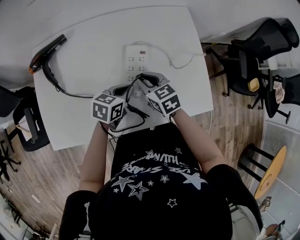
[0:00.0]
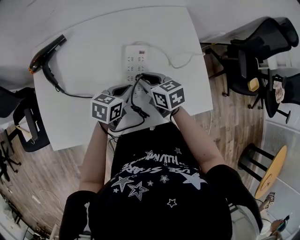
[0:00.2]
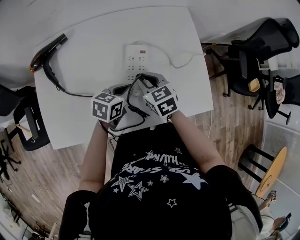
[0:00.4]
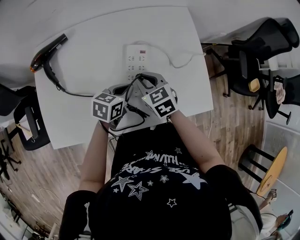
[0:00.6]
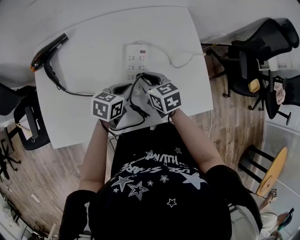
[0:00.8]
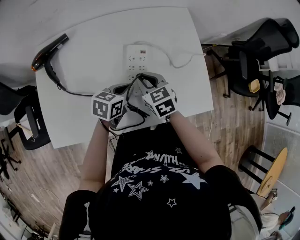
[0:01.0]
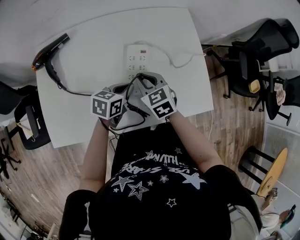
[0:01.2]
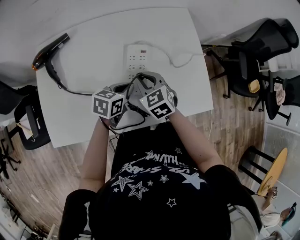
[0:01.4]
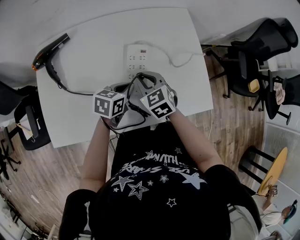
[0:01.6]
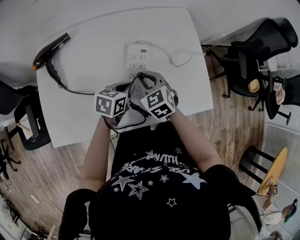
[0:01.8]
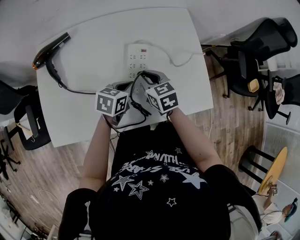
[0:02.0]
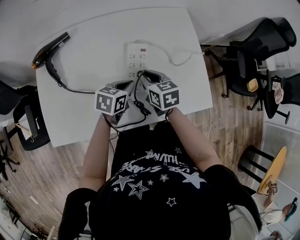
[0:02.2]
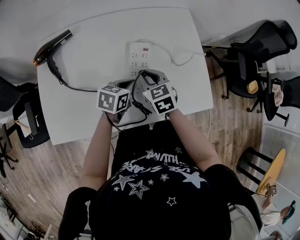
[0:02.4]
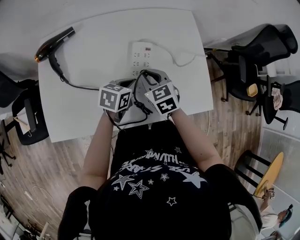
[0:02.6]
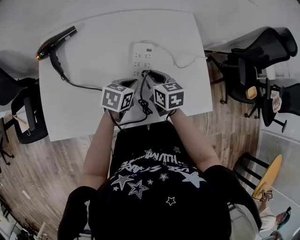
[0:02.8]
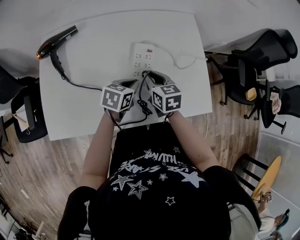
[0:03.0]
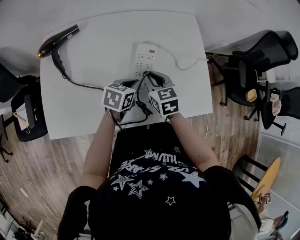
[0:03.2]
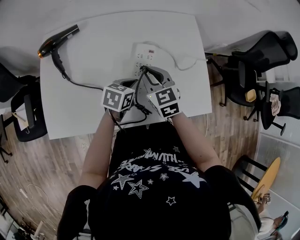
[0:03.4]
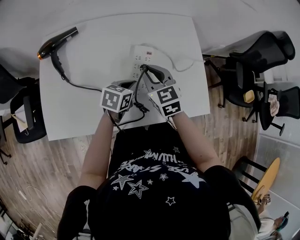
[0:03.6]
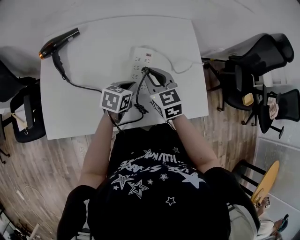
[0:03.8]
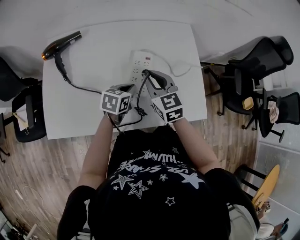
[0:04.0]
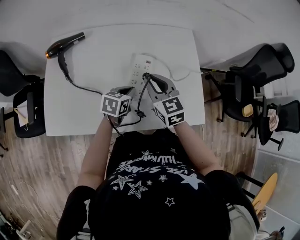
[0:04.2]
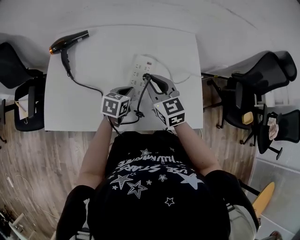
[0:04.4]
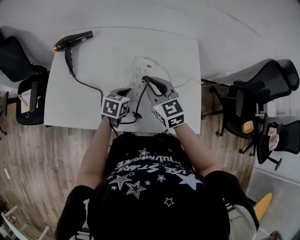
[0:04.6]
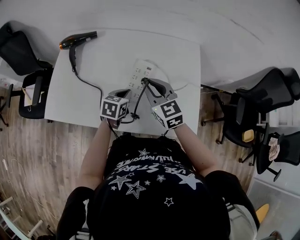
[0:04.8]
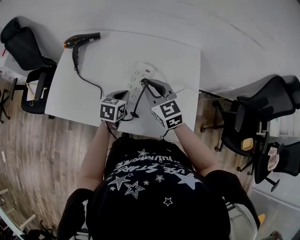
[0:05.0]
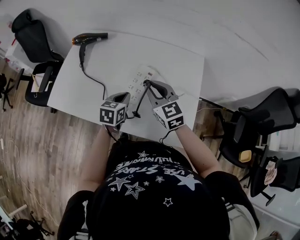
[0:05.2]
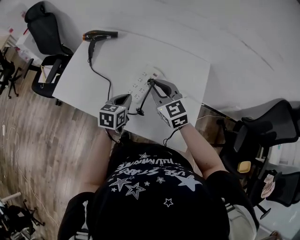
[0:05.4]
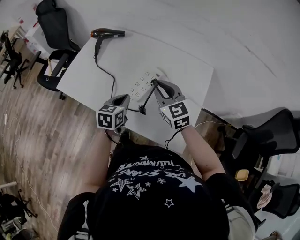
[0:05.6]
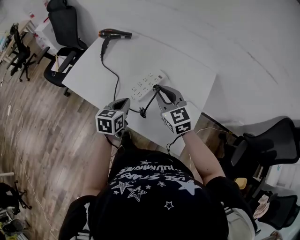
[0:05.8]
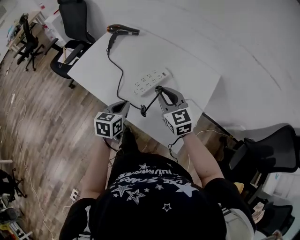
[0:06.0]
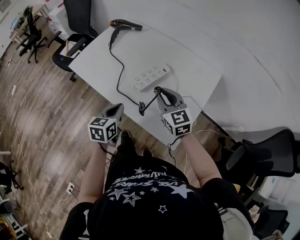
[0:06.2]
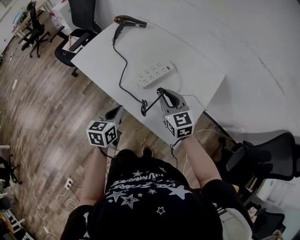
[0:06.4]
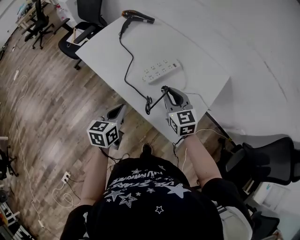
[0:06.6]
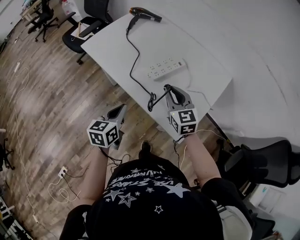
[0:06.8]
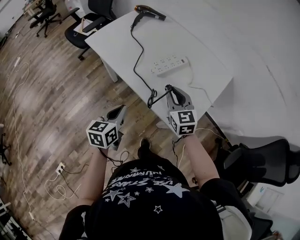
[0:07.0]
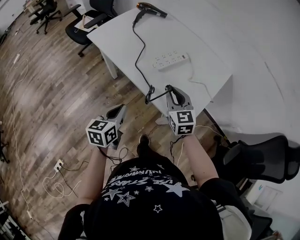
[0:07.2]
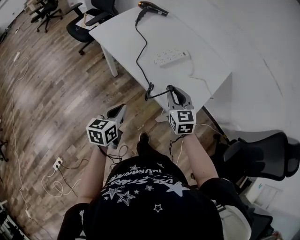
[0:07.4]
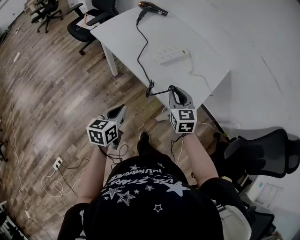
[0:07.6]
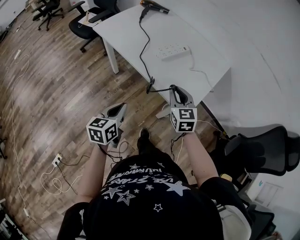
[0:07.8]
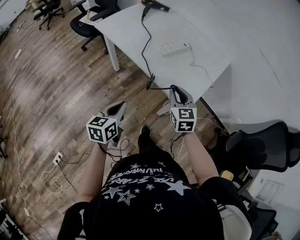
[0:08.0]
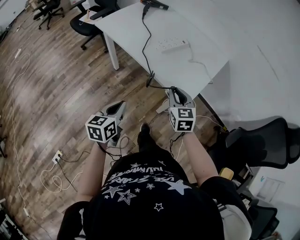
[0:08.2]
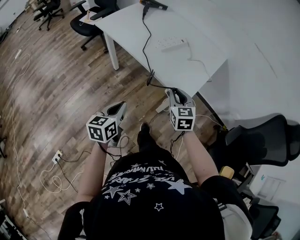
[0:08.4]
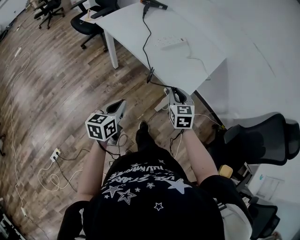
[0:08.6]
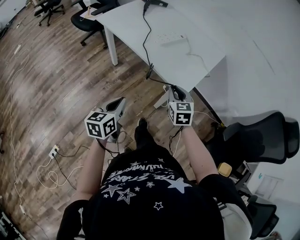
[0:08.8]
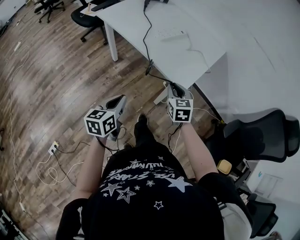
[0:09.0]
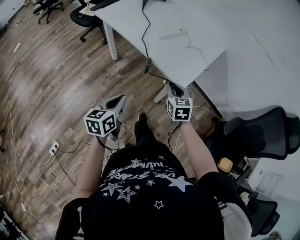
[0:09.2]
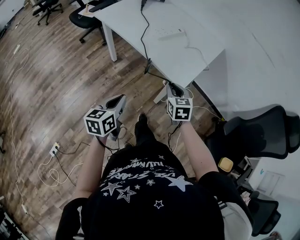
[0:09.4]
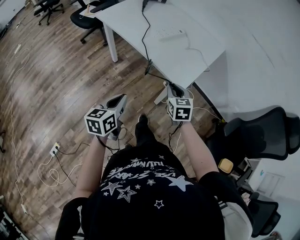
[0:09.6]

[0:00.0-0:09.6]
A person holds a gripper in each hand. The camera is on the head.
0:00.0 to 0:01.6: The grippers make only small movements.
0:03.2 to 0:04.8: The right gripper moves upward, roughly 10 cm, and rotates some 30 degrees; the left gripper rotates approximately 20 degrees.
0:04.8 to 0:06.4: The left gripper changes place by some 20 cm, and swivels roughly 40 degrees. The right gripper changes place by about 10 cm, and turns by some 20 degrees.
0:06.4 to 0:08.0: The two grippers go roughly 20 cm backward.
0:08.0 to 0:09.6: The right gripper moves backward and downward, roughly 10 cm, while the left gripper goes some 10 cm backward.

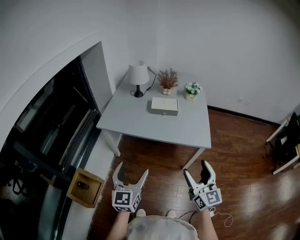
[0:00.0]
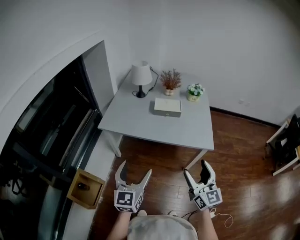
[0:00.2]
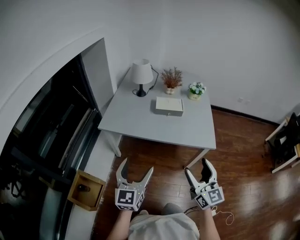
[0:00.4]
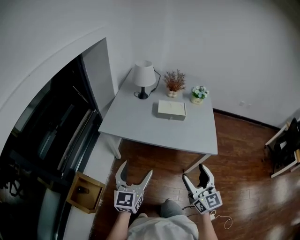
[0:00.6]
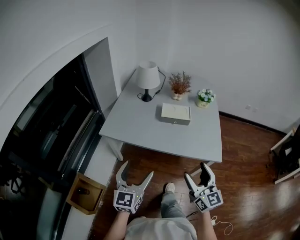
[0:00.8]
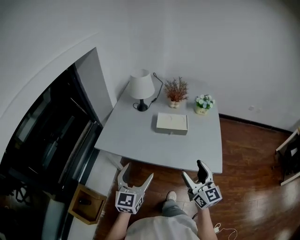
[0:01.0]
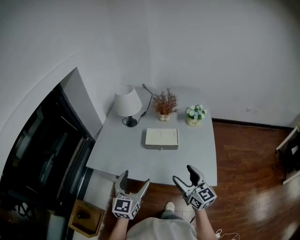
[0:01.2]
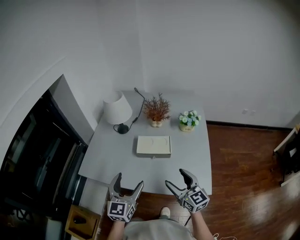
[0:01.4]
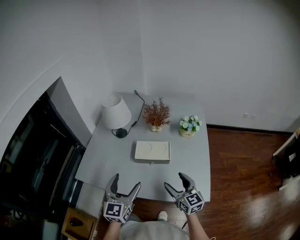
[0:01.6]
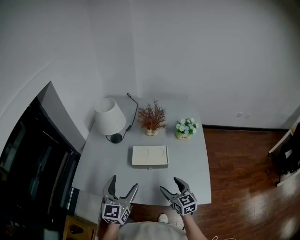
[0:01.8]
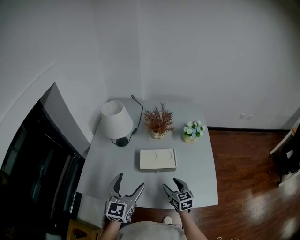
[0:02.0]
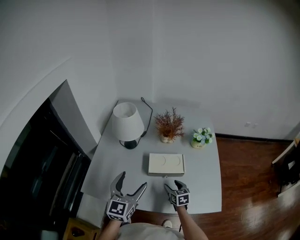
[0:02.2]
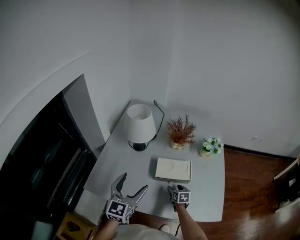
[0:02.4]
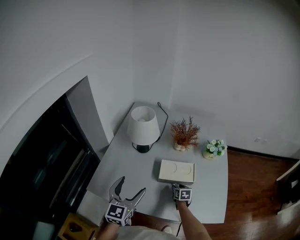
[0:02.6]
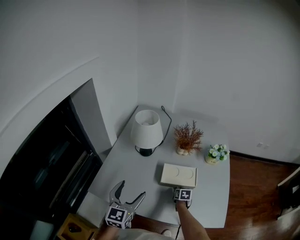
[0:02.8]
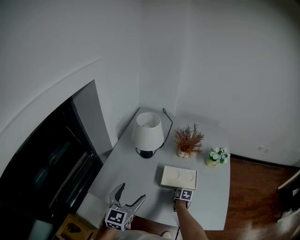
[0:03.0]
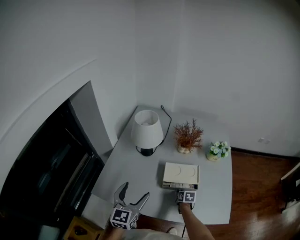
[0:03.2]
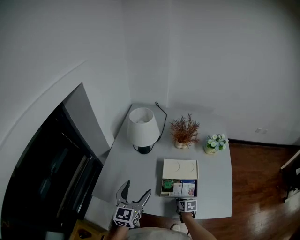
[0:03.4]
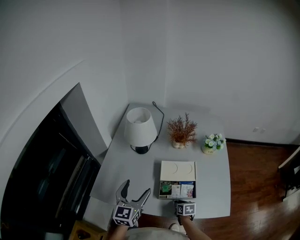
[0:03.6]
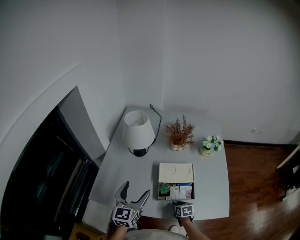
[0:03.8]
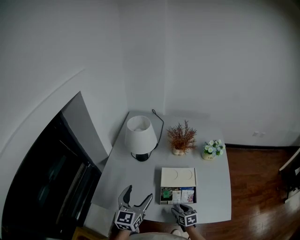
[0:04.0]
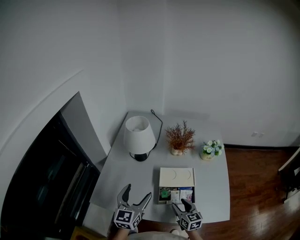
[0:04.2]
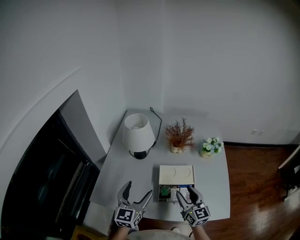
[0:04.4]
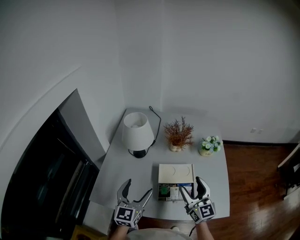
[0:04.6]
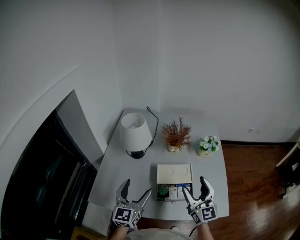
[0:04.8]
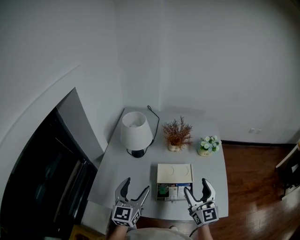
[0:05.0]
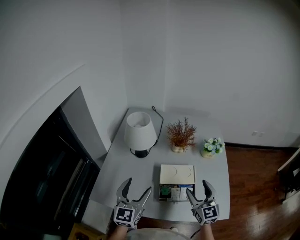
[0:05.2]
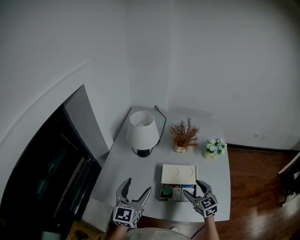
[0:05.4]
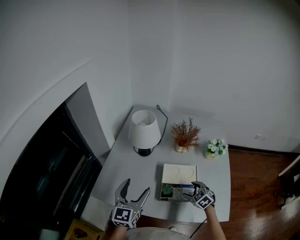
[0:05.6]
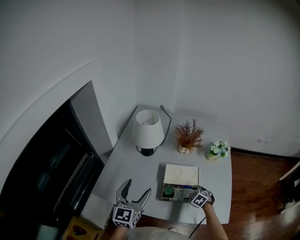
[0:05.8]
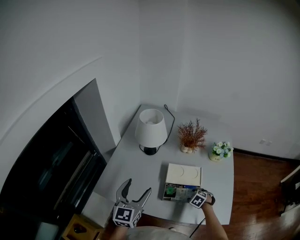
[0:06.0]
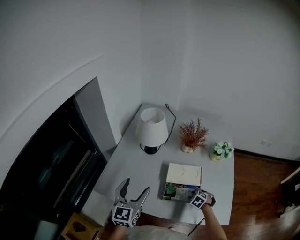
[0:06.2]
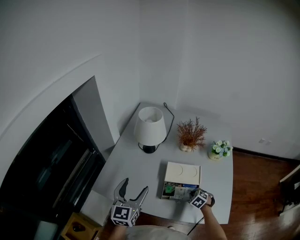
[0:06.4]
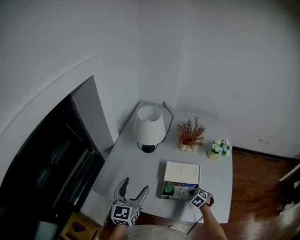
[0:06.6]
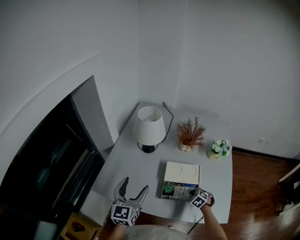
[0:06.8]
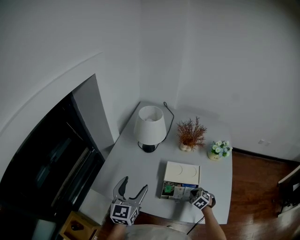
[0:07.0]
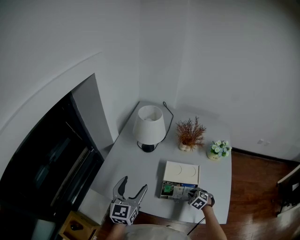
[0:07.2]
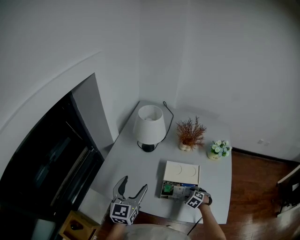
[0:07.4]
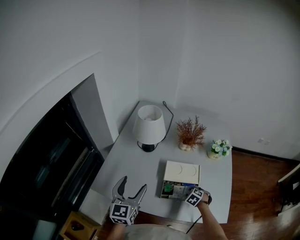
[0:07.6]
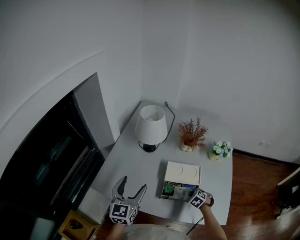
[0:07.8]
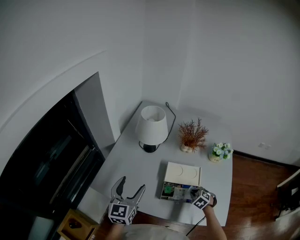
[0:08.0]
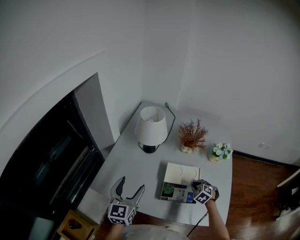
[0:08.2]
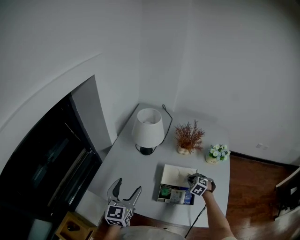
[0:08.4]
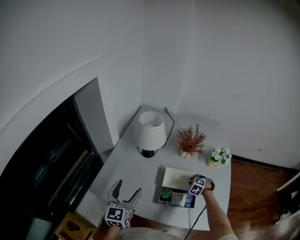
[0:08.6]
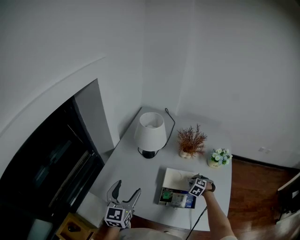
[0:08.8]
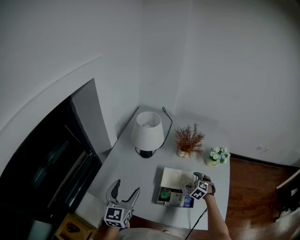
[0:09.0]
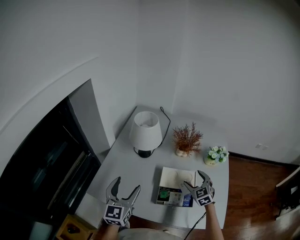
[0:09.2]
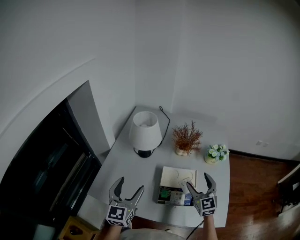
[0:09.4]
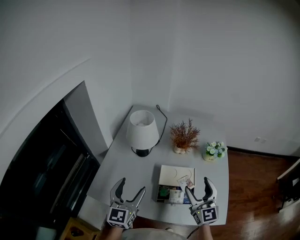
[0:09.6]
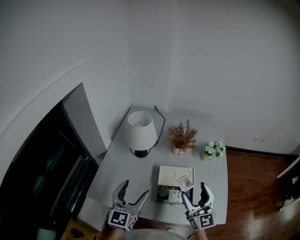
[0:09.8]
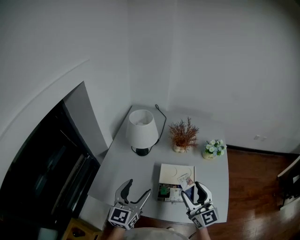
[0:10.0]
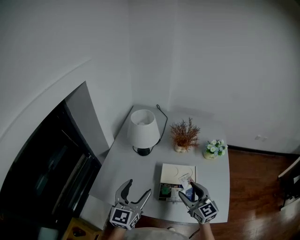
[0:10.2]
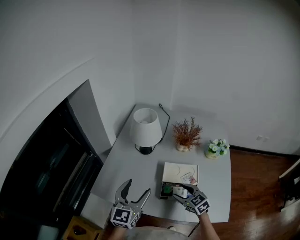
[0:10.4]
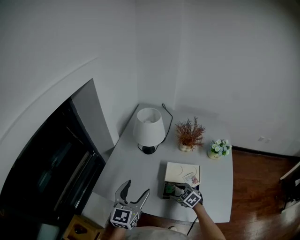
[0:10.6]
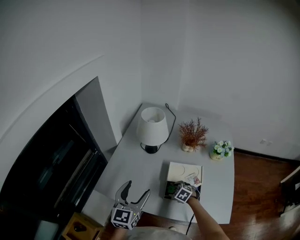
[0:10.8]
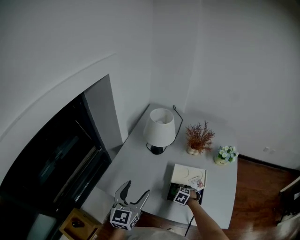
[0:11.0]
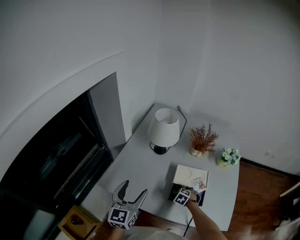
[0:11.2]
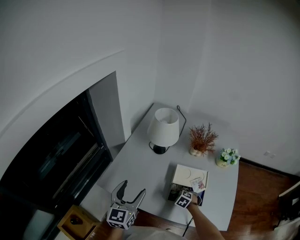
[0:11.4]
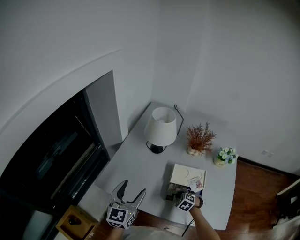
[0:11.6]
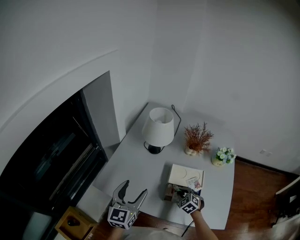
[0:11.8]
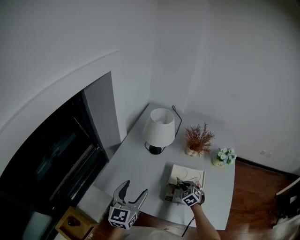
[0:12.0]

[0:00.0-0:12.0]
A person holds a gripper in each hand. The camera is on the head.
0:00.0 to 0:01.6: Both grippers travel together forward, some 35 cm.
0:01.6 to 0:03.0: The left gripper goes approximately 15 cm to the left and forward, while the right gripper is displaced downward and forward by some 30 cm, tilts its fingers approximately 50 degrees downward, and closes up.
0:03.0 to 0:04.4: The right gripper heads upward, covering some 30 cm, tips its fingers upward by roughly 50 degrees, and opens.
0:04.4 to 0:06.0: The right gripper moves downward, some 25 cm, and angles its fingers downward, by about 70 degrees.
0:06.0 to 0:07.6: The right gripper closes, then reopens.
0:07.6 to 0:09.0: The right gripper moves forward and upward, some 15 cm, and opens.
0:09.0 to 0:10.4: The right gripper shifts about 15 cm backward and to the left, reaches roughly 25 cm upward, then returns, and turns by some 40 degrees, while the left gripper changes place by about 5 cm.
0:10.4 to 0:12.0: The right gripper shifts approximately 10 cm downward and forward, swivels some 30 degrees, and closes up. Meanwhile the left gripper goes about 5 cm to the left.

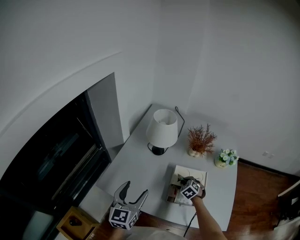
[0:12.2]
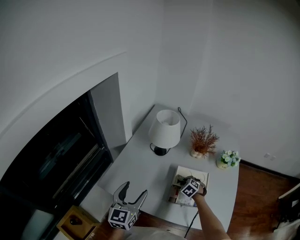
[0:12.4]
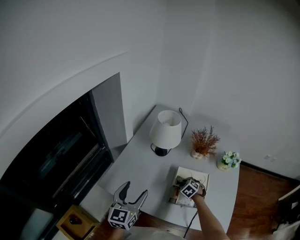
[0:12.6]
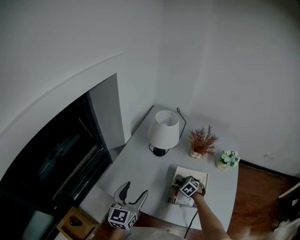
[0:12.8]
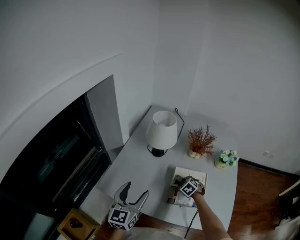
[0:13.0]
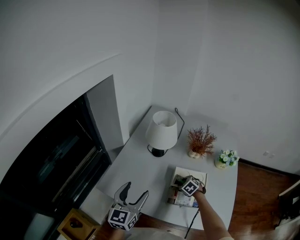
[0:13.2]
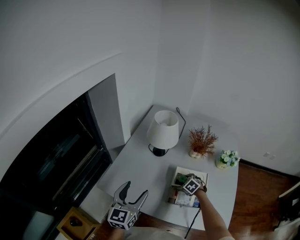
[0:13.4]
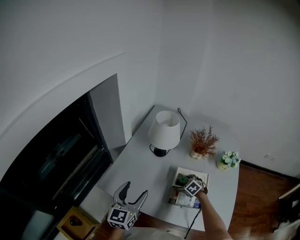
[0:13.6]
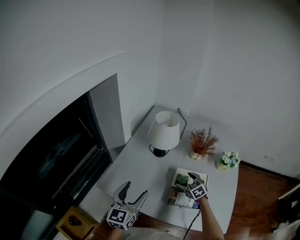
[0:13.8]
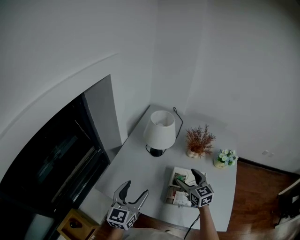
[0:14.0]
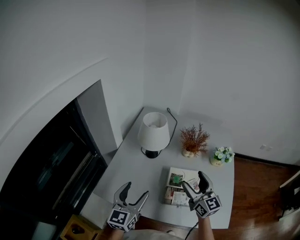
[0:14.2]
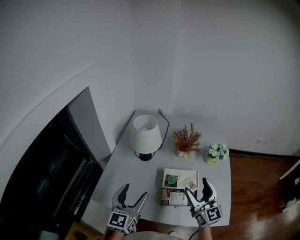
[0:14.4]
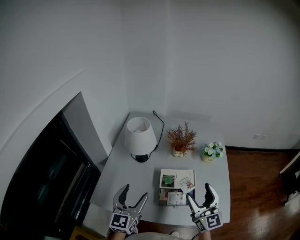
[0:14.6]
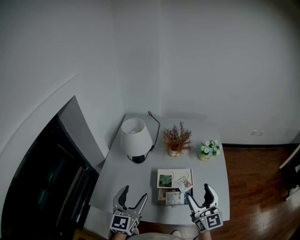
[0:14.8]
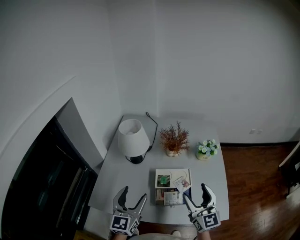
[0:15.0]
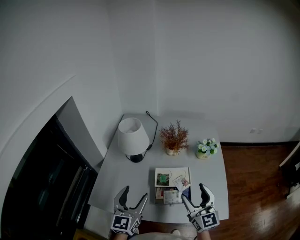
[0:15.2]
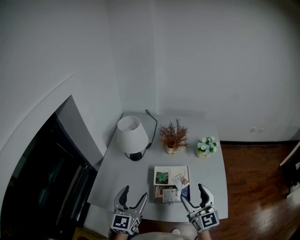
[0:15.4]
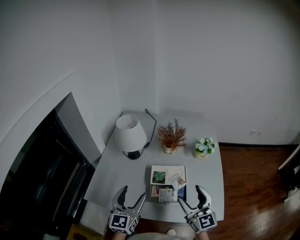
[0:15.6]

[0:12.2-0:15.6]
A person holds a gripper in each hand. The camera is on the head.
0:12.2 to 0:13.8: The right gripper shifts approximately 5 cm upward, swivels approximately 20 degrees, and opens.
0:13.8 to 0:15.6: The right gripper shifts some 30 cm upward, backward and to the right, and tilts its fingers about 50 degrees upward, while the left gripper goes some 10 cm to the right.
